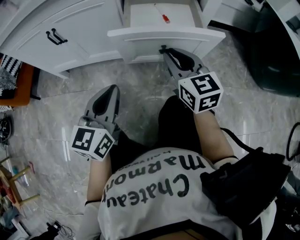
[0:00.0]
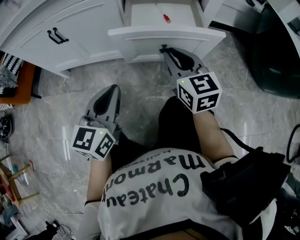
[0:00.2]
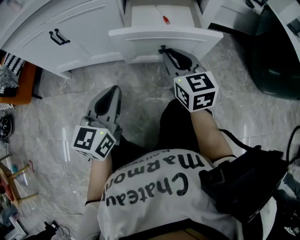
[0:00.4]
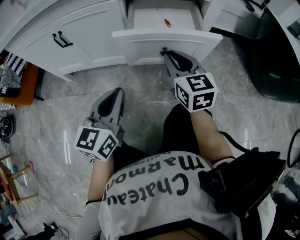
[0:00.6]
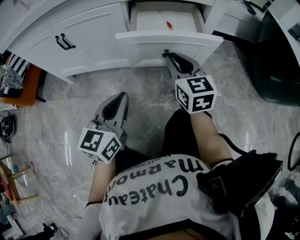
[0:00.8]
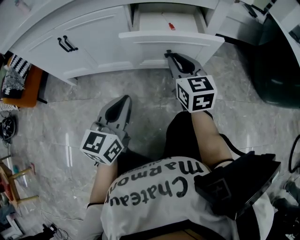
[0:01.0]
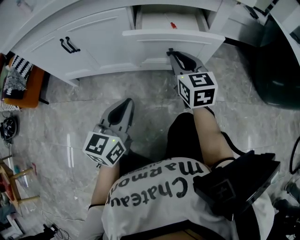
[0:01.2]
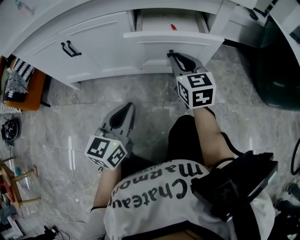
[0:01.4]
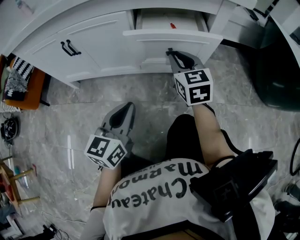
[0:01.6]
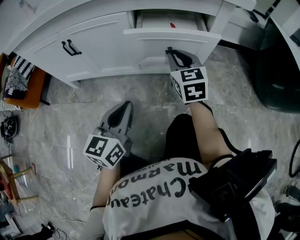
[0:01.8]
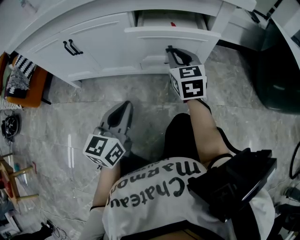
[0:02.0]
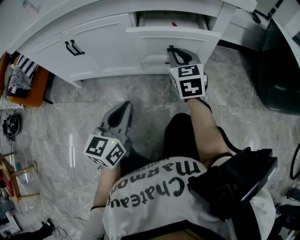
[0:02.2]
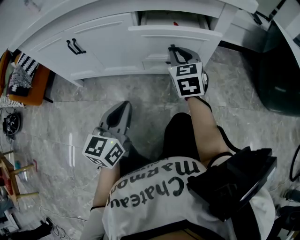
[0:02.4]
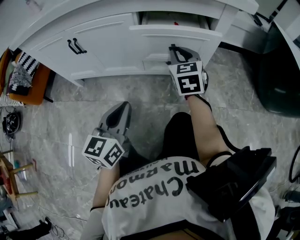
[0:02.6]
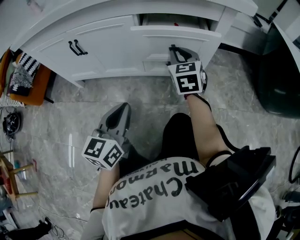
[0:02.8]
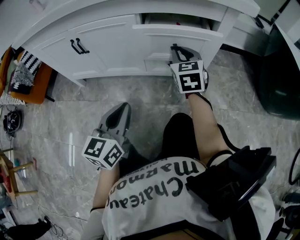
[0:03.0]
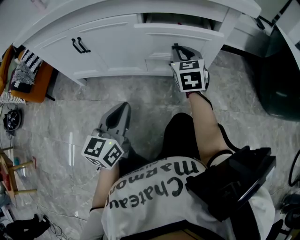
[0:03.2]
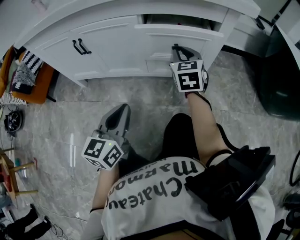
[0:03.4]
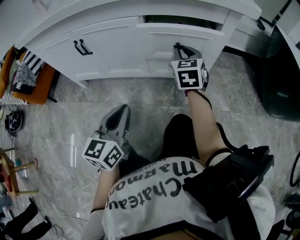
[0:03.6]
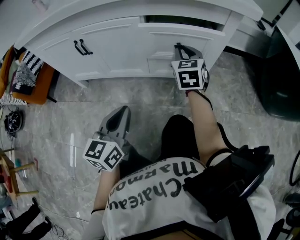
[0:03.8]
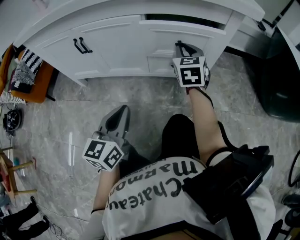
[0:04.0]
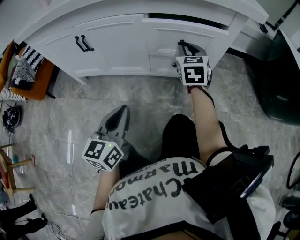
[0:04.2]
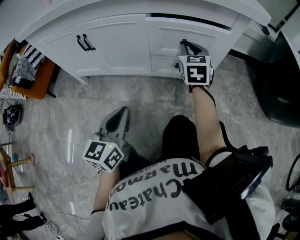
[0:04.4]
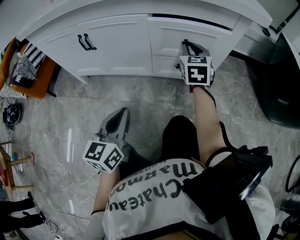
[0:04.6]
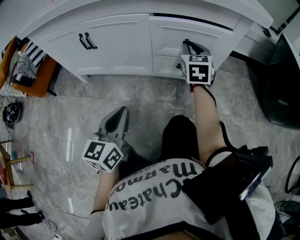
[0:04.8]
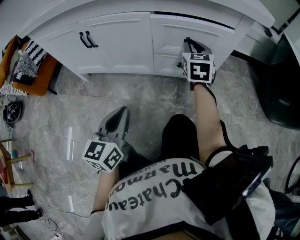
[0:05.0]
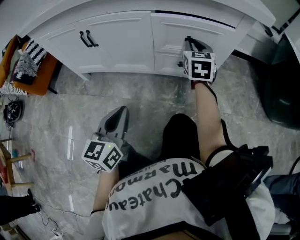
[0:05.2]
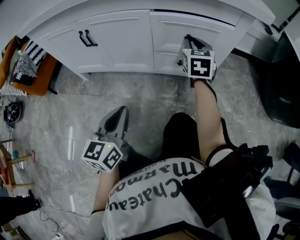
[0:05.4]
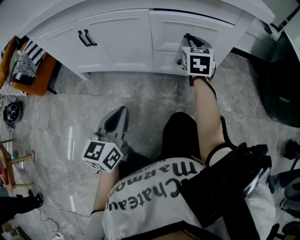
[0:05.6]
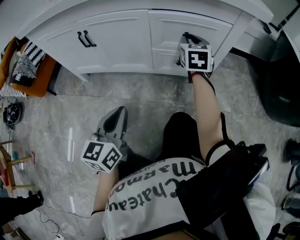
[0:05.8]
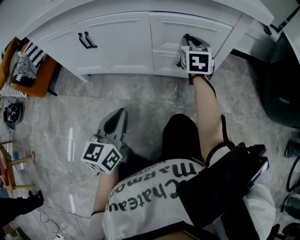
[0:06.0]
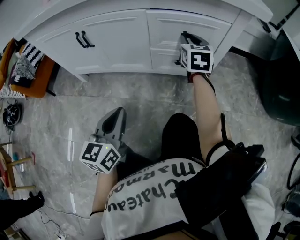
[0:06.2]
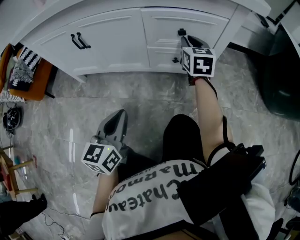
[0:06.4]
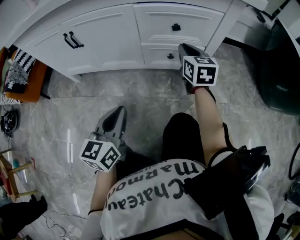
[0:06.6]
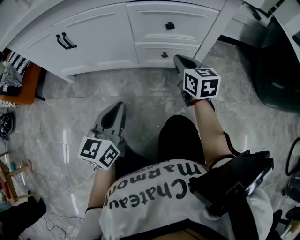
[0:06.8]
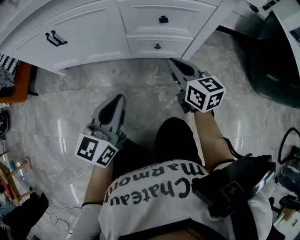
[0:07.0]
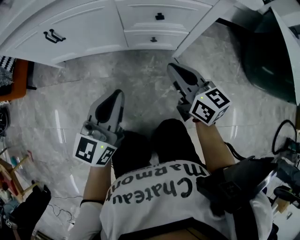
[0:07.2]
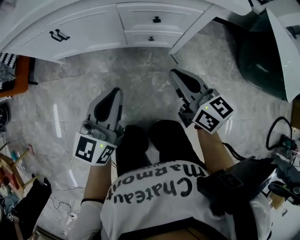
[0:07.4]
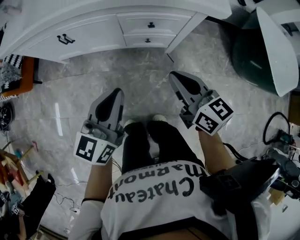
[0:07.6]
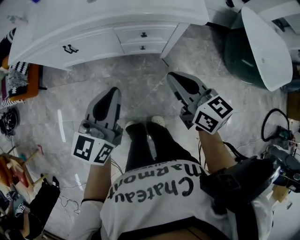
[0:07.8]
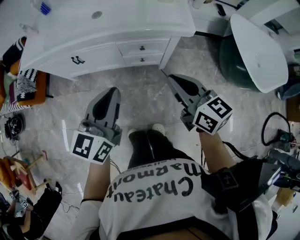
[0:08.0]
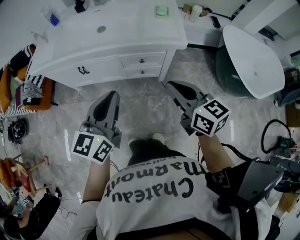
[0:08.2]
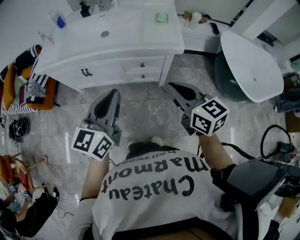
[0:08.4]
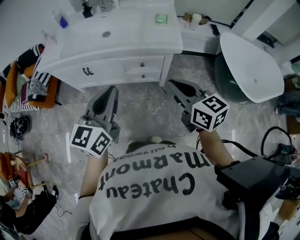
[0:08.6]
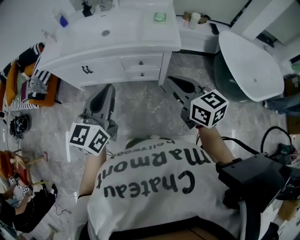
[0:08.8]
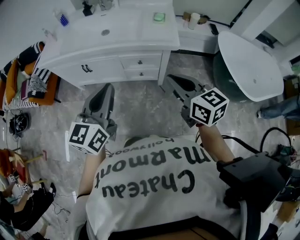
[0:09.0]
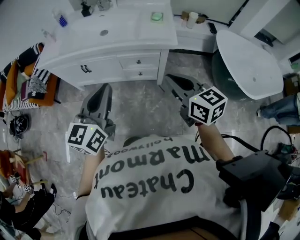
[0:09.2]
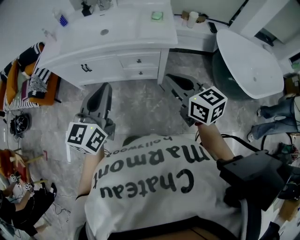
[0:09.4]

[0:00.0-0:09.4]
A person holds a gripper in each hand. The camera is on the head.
0:00.0 to 0:01.6: The right gripper moves forward, about 5 cm.
0:01.6 to 0:03.2: There are only small adjustments of the grippers.
0:03.2 to 0:06.2: The grippers stay close to where they were, moving slightly.
0:06.2 to 0:07.8: The right gripper heads upward and backward, covering some 40 cm, and rotates about 40 degrees. Meanwhile the left gripper heads upward, covering approximately 35 cm.
0:07.8 to 0:09.4: The right gripper shifts roughly 15 cm upward and to the right, while the left gripper is displaced upward by approximately 15 cm.

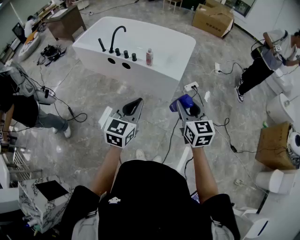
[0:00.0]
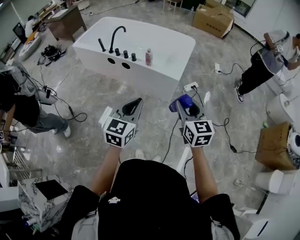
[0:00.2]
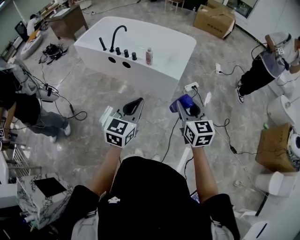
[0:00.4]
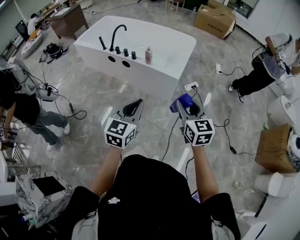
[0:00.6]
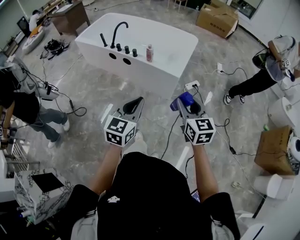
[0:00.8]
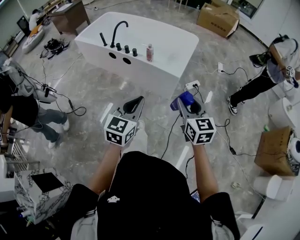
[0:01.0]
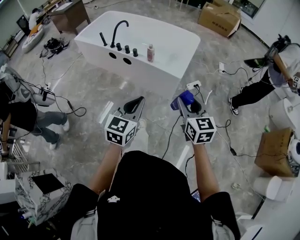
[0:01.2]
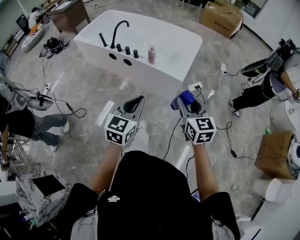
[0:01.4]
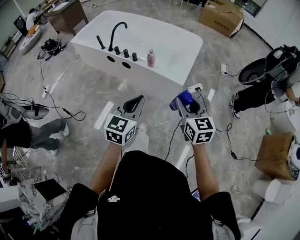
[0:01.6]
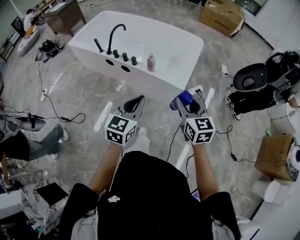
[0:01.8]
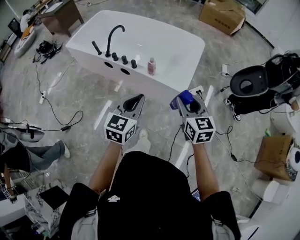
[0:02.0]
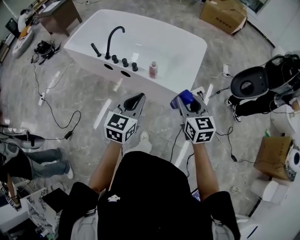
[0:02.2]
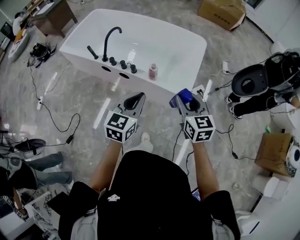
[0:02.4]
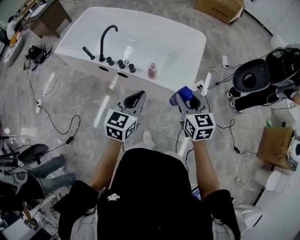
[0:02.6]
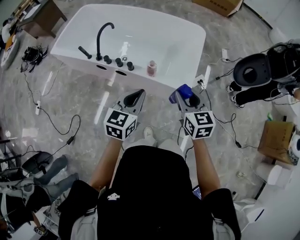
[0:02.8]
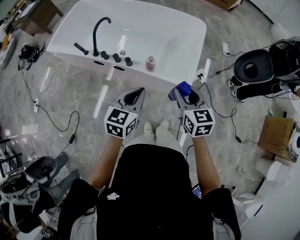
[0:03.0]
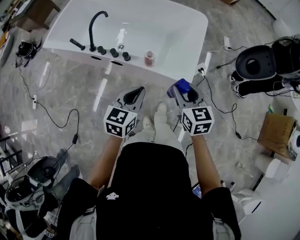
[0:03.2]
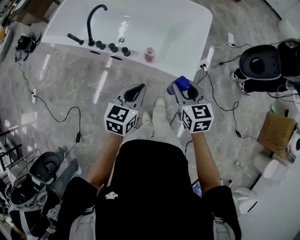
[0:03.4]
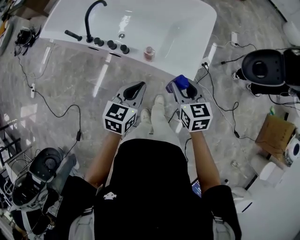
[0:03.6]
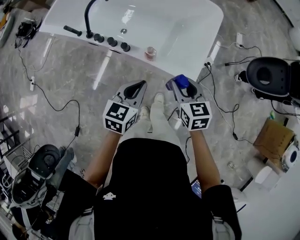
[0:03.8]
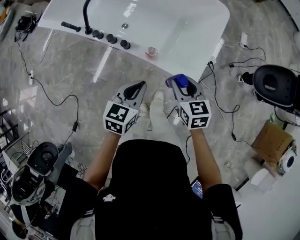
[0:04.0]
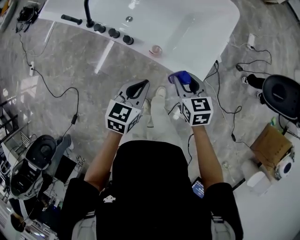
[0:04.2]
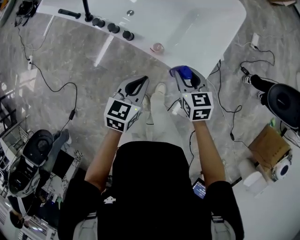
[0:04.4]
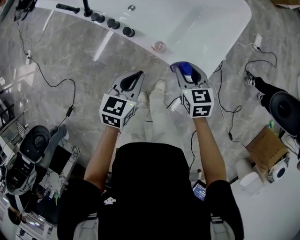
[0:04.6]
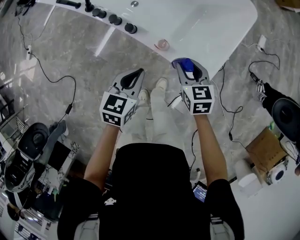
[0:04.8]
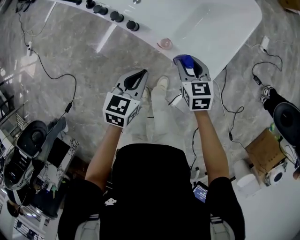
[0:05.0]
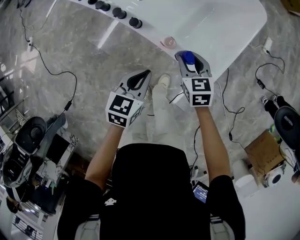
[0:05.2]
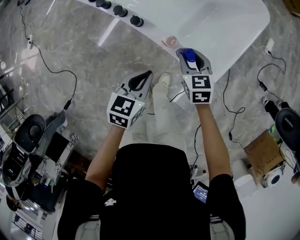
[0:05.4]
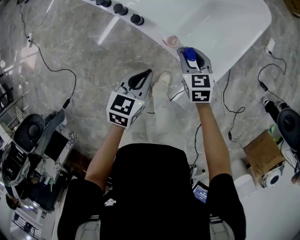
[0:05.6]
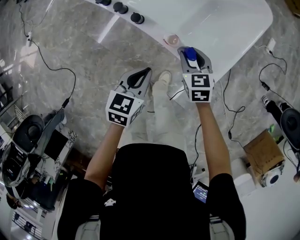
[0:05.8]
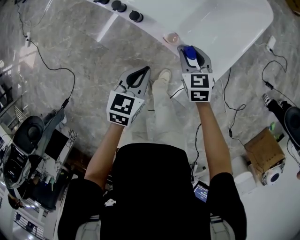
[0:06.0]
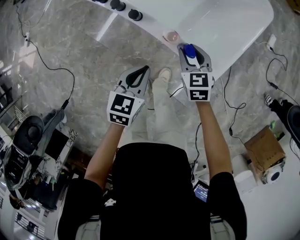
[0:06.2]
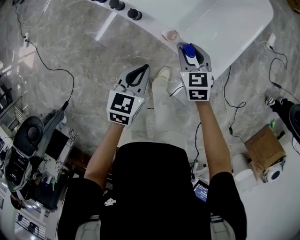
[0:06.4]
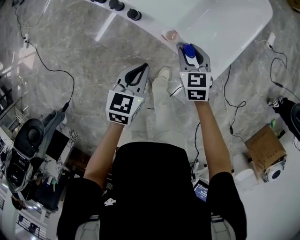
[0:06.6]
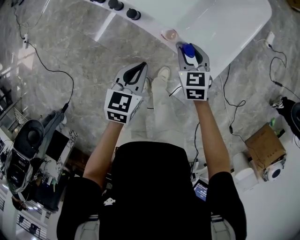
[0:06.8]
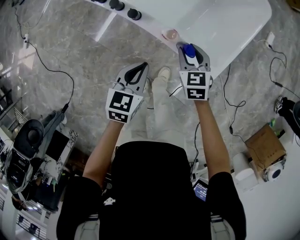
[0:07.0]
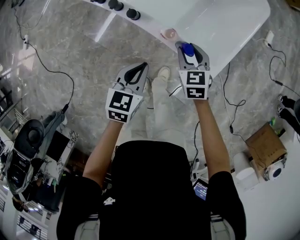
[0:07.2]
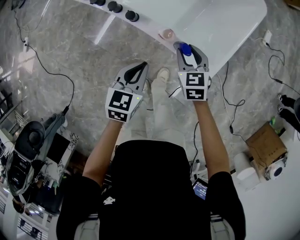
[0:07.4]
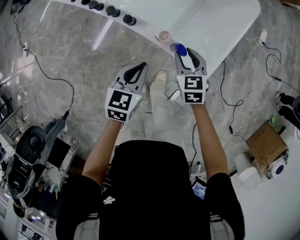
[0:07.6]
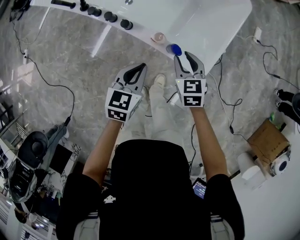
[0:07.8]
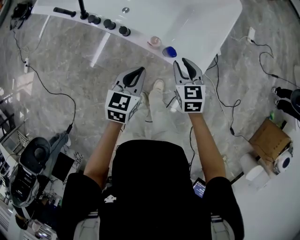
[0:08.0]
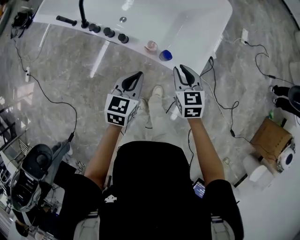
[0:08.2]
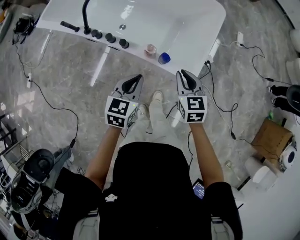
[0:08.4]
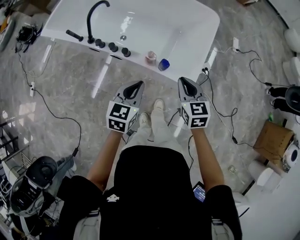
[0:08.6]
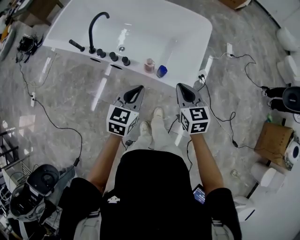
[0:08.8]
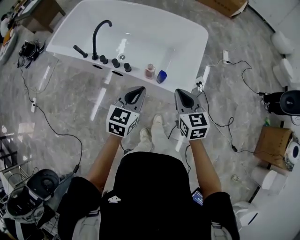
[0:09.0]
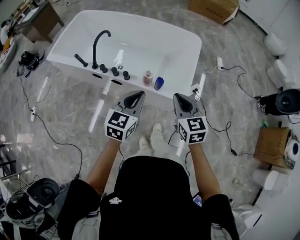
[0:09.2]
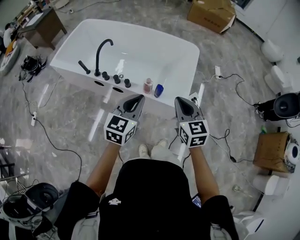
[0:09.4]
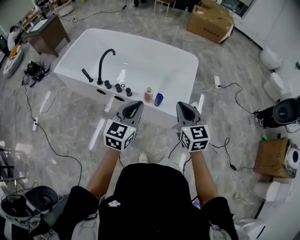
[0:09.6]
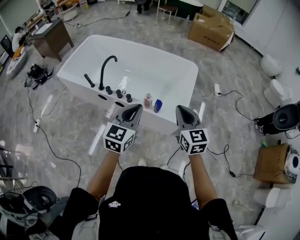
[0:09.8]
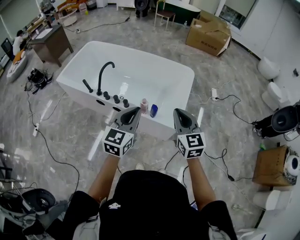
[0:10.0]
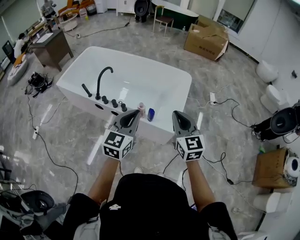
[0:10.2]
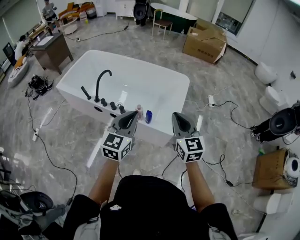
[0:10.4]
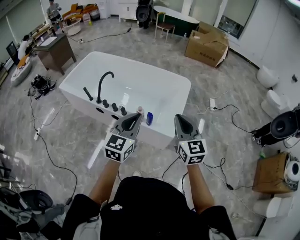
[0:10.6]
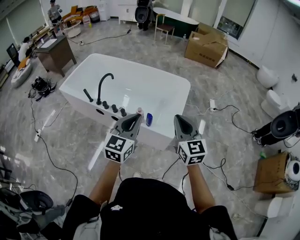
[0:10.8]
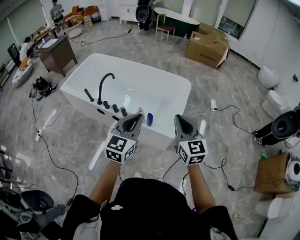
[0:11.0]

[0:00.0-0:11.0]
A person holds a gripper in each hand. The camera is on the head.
0:00.0 to 0:01.6: The grippers both shift forward by some 10 cm.
0:01.6 to 0:03.2: Both grippers move forward, roughly 30 cm.
0:03.2 to 0:04.8: Both grippers move downward and forward, approximately 25 cm. The right gripper rotates some 20 degrees.
0:04.8 to 0:06.2: Both grippers travel together downward, approximately 5 cm.
0:06.2 to 0:07.8: The two grippers go roughly 5 cm upward.
0:07.8 to 0:09.4: The two grippers go approximately 30 cm upward and backward. The right gripper changes its angle by some 30 degrees, and closes up, while the left gripper swivels about 30 degrees.
0:09.4 to 0:11.0: The grippers both shift upward and to the right by roughly 15 cm.

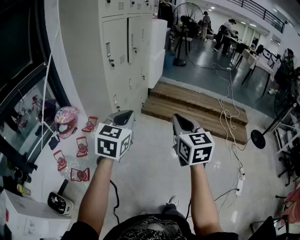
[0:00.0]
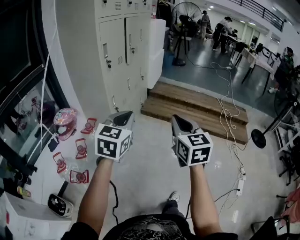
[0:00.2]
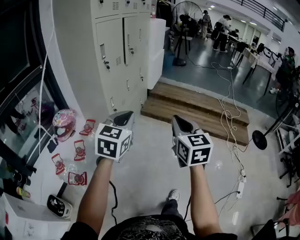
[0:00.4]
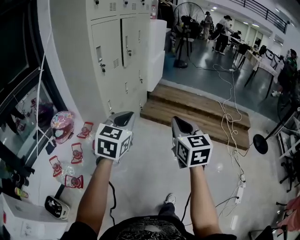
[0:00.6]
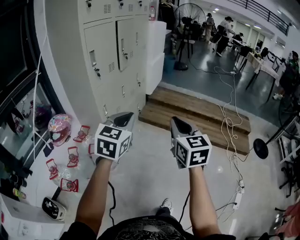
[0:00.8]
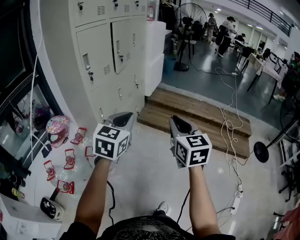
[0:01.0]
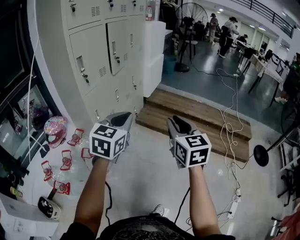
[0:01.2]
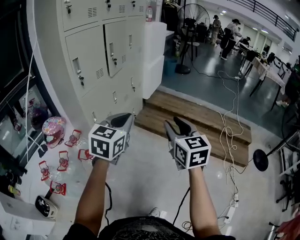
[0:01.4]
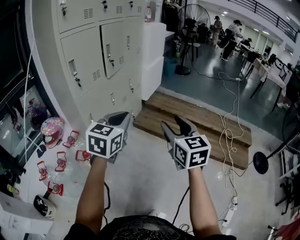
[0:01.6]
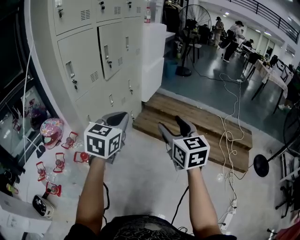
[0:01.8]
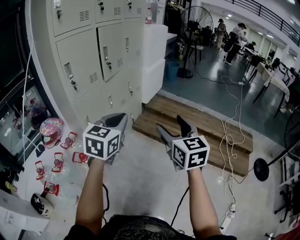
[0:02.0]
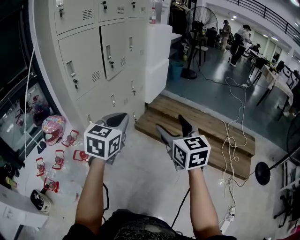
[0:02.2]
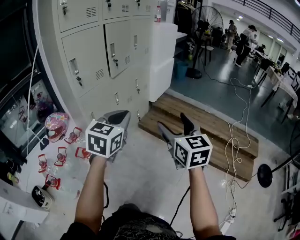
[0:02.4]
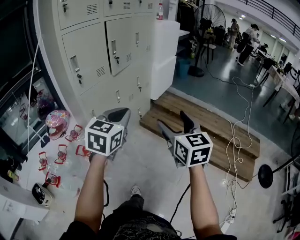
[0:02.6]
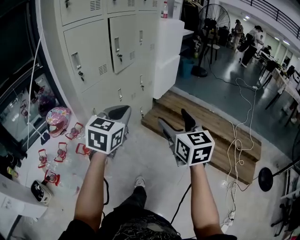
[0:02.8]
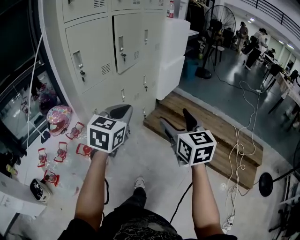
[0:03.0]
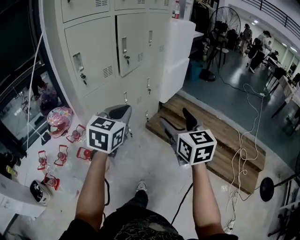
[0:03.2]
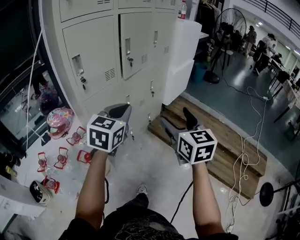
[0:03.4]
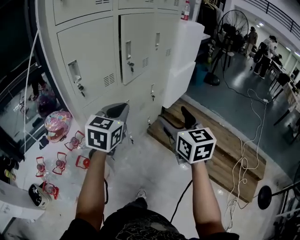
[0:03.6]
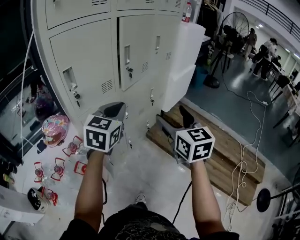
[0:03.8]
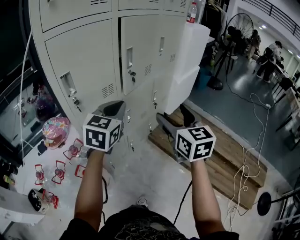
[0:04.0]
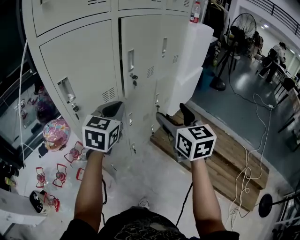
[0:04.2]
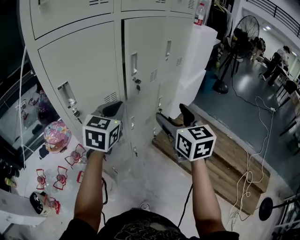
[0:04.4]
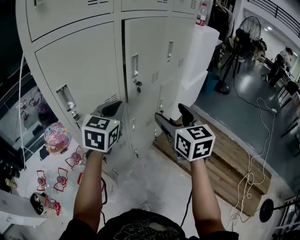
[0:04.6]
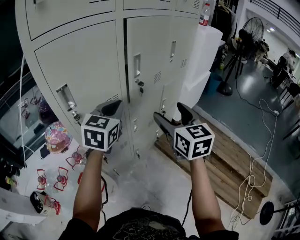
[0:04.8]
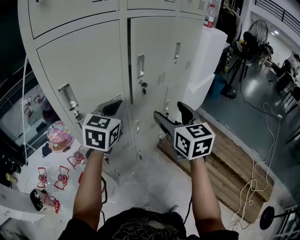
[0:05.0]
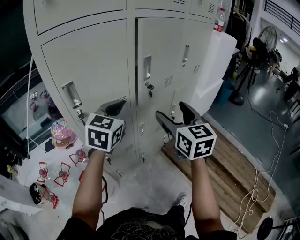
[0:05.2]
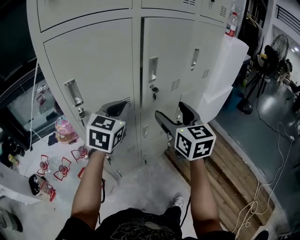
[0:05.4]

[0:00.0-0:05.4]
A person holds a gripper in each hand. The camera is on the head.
0:00.0 to 0:01.4: Both grippers travel together forward and to the right, about 25 cm.
0:01.4 to 0:02.8: Both grippers travel together forward, some 10 cm. The right gripper opens its fingers.
0:02.8 to 0:04.0: The two grippers go some 30 cm forward.
0:04.0 to 0:05.4: The right gripper moves forward, about 15 cm; the left gripper moves forward and to the left, about 15 cm.
